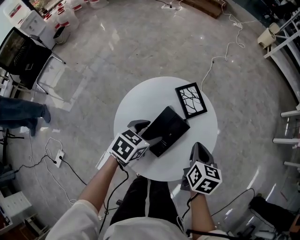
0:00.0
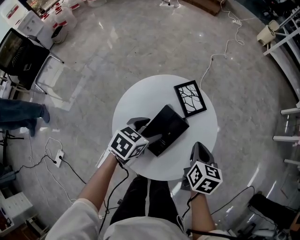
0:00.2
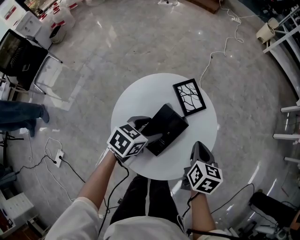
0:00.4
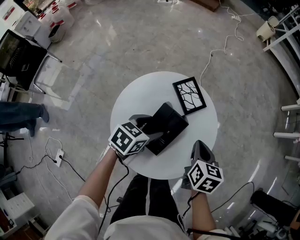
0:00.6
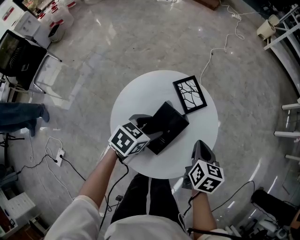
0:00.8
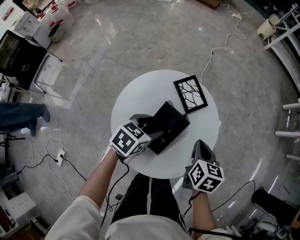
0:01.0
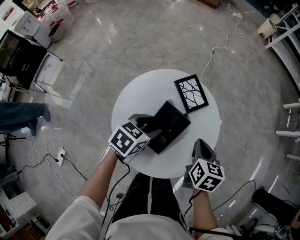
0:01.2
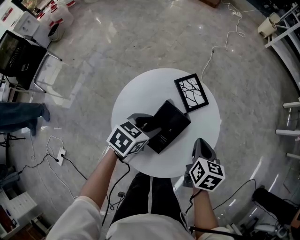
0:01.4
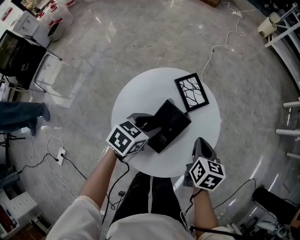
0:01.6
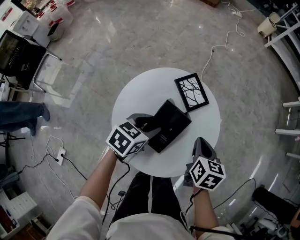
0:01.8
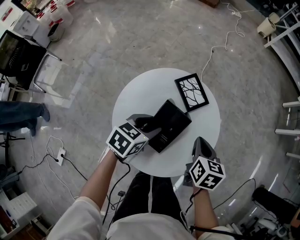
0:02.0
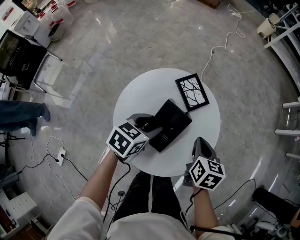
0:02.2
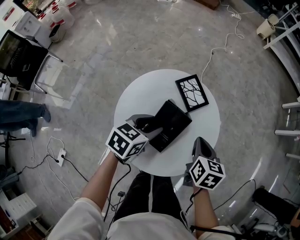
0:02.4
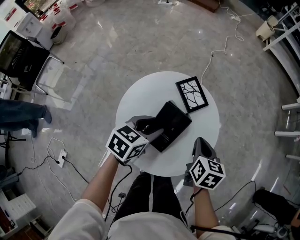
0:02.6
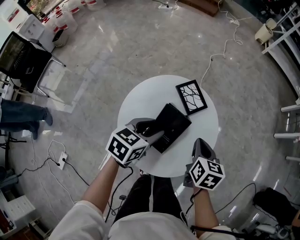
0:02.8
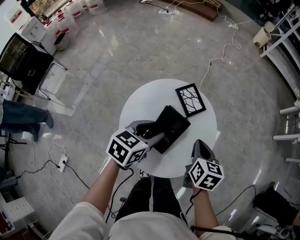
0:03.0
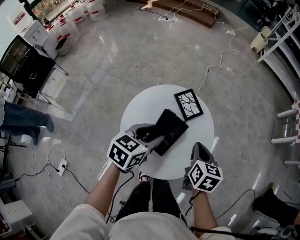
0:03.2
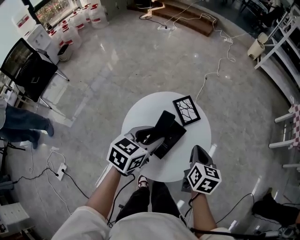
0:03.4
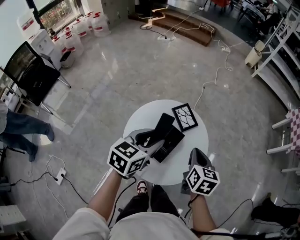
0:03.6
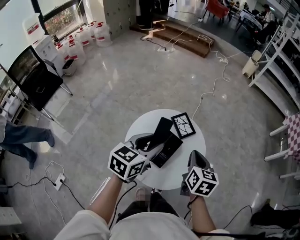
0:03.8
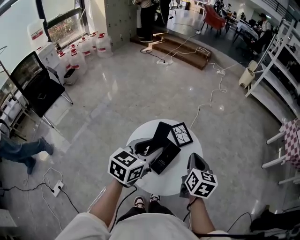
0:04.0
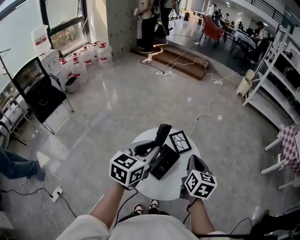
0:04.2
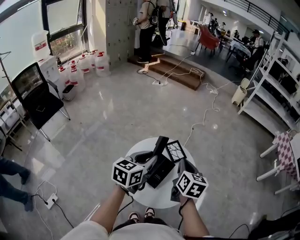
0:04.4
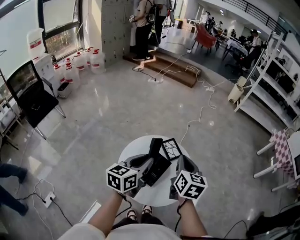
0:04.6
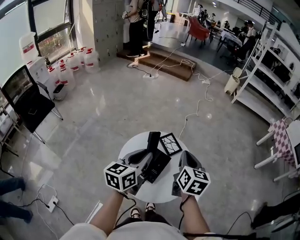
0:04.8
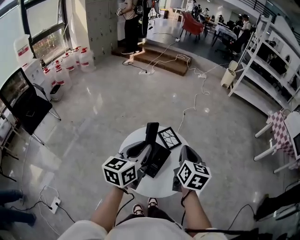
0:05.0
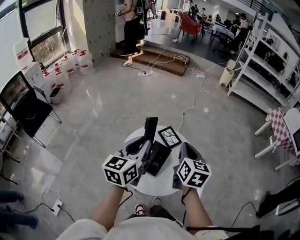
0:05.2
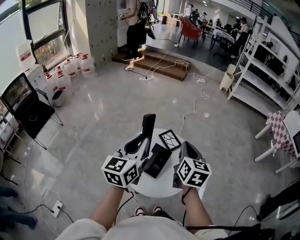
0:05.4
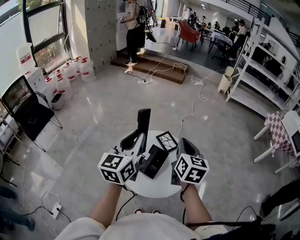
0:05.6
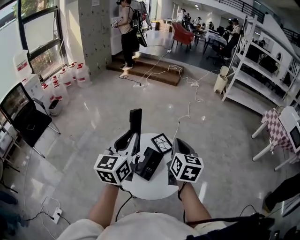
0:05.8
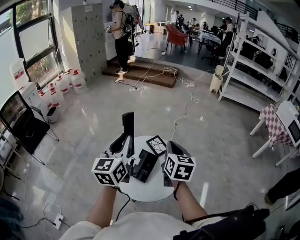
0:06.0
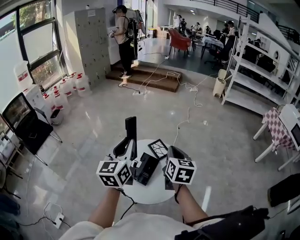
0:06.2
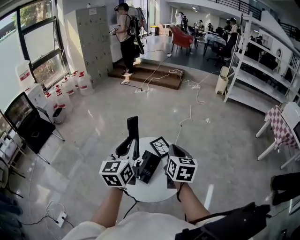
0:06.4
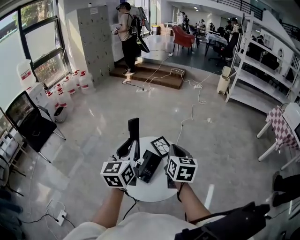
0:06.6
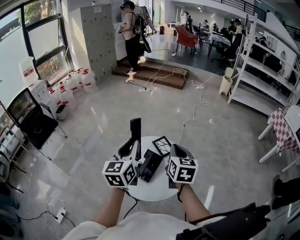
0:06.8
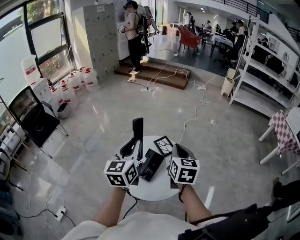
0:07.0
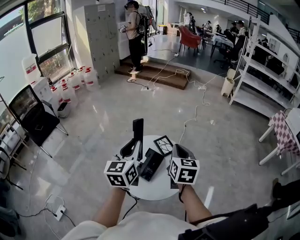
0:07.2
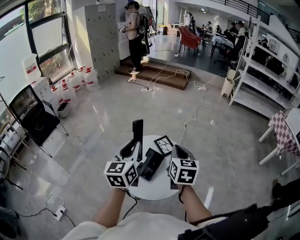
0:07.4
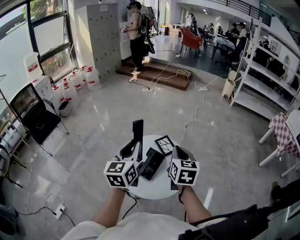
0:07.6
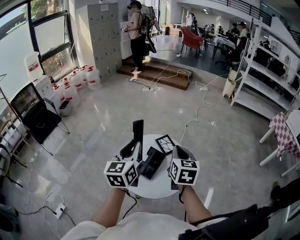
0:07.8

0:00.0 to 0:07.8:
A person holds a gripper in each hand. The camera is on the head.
0:00.0 to 0:01.6: The left gripper closes up.
0:01.6 to 0:03.2: The right gripper moves upward, approximately 5 cm; the left gripper travels upward by approximately 10 cm.
0:03.2 to 0:04.6: Both grippers travel together upward, about 15 cm. The right gripper rotates roughly 20 degrees; the left gripper turns by about 30 degrees, and closes.
0:04.6 to 0:06.2: The left gripper heads upward, covering about 10 cm, and changes its angle by about 30 degrees.
0:06.2 to 0:07.8: The grippers stay close to where they were, moving slightly.

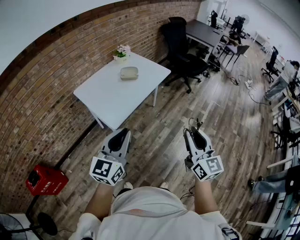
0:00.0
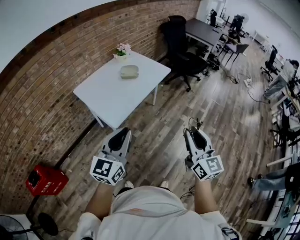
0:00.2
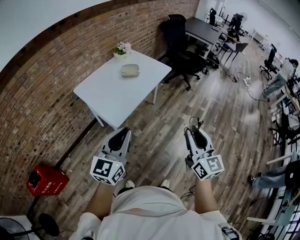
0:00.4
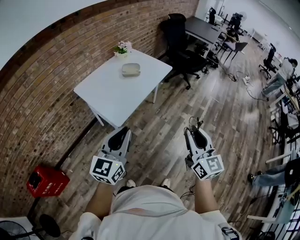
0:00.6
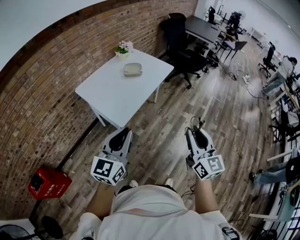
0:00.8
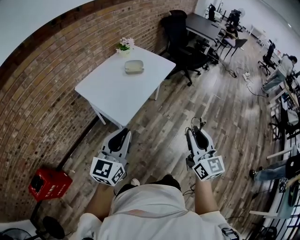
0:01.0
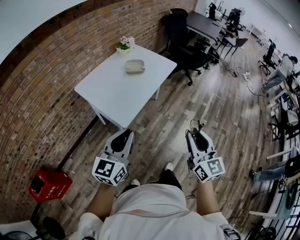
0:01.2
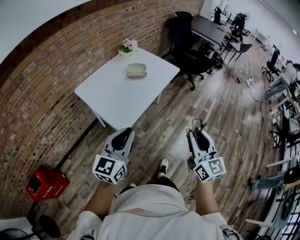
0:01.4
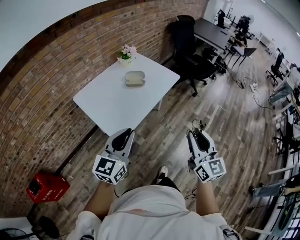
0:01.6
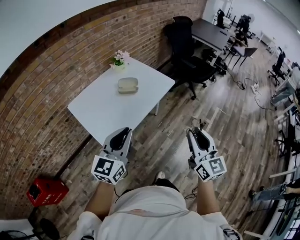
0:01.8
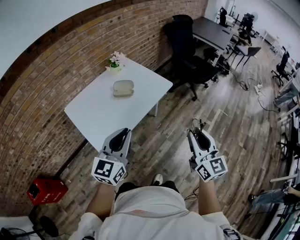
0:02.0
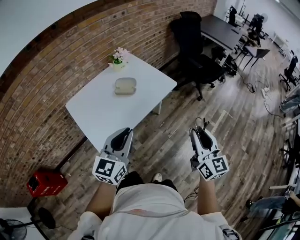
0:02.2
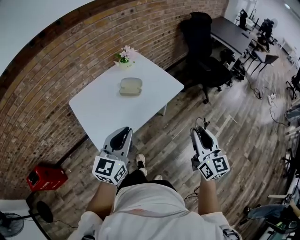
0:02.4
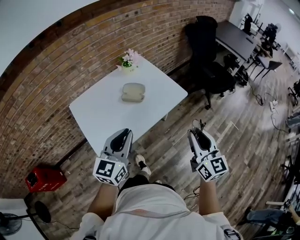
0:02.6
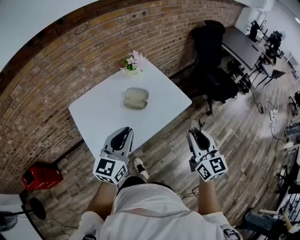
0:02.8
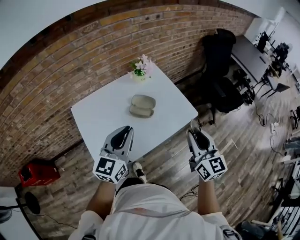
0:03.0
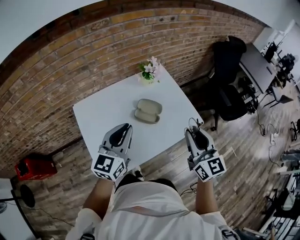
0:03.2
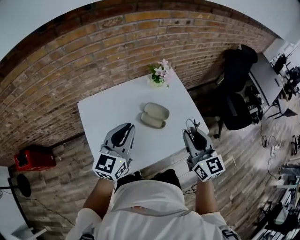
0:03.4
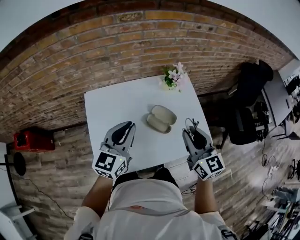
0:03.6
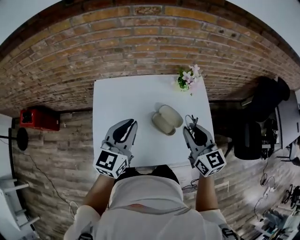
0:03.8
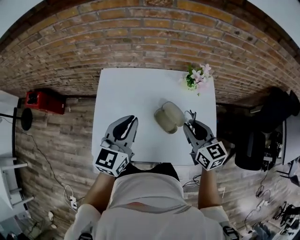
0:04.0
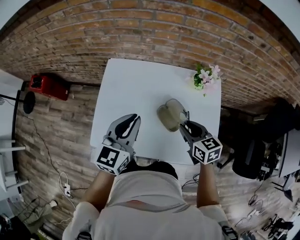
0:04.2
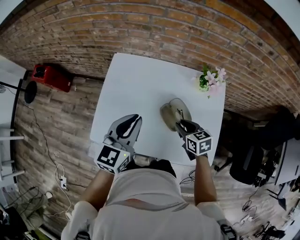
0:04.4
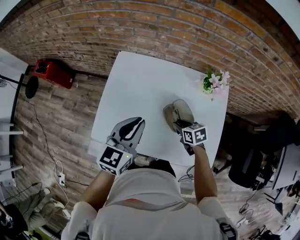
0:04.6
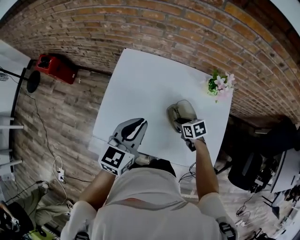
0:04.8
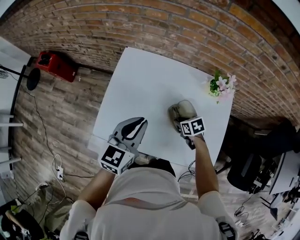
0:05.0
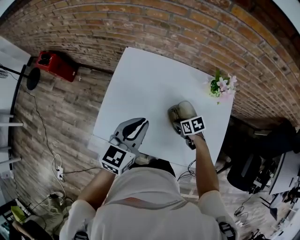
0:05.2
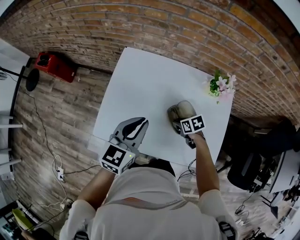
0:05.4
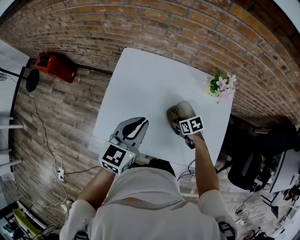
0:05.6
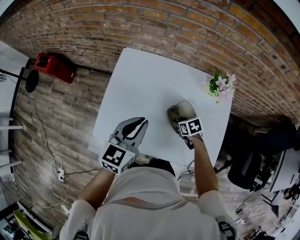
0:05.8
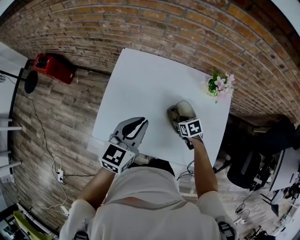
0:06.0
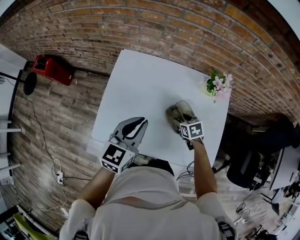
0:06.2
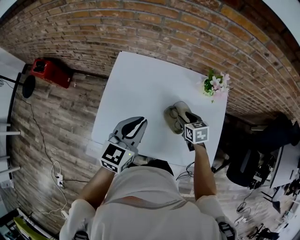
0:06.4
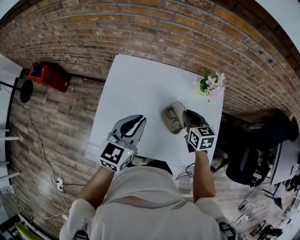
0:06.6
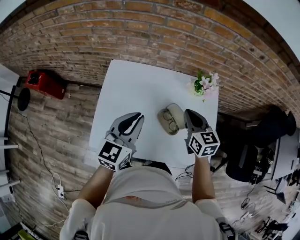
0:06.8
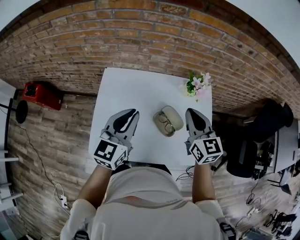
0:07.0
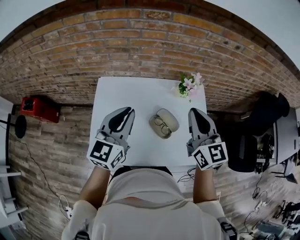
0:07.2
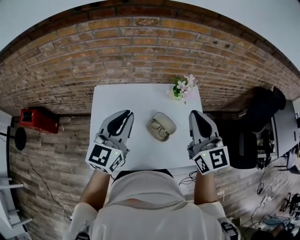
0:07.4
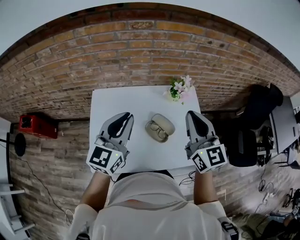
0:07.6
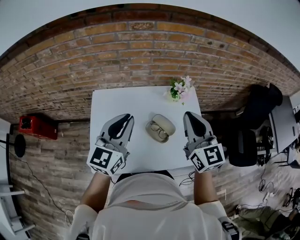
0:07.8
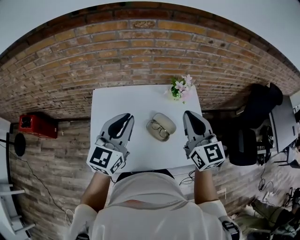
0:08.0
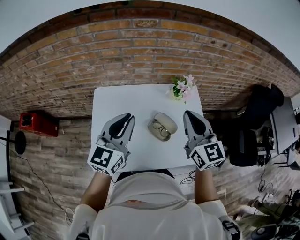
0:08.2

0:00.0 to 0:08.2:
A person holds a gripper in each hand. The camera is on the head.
0:00.0 to 0:01.6: The right gripper goes approximately 15 cm forward and to the left, while the left gripper travels forward by some 15 cm.
0:01.6 to 0:03.2: The two grippers go approximately 40 cm forward. The right gripper swivels some 30 degrees. Meanwhile the left gripper rotates roughly 20 degrees.
0:03.2 to 0:05.0: The left gripper heads downward, covering about 10 cm, and swivels approximately 40 degrees. The right gripper heads downward, covering some 35 cm, and tips its fingers downward by approximately 60 degrees.
0:05.0 to 0:06.6: The right gripper travels upward by roughly 15 cm, rotates about 40 degrees, and opens, then closes once more.
0:06.6 to 0:08.2: The left gripper moves upward, roughly 10 cm, while the right gripper heads upward, covering roughly 25 cm, and points its fingers some 30 degrees further upward.

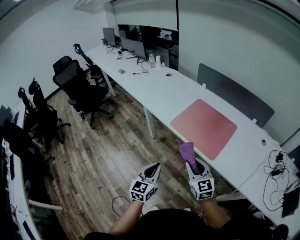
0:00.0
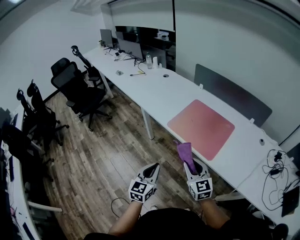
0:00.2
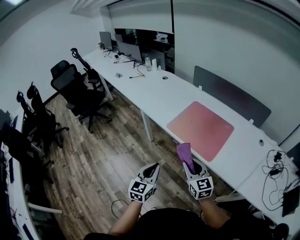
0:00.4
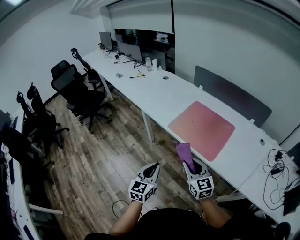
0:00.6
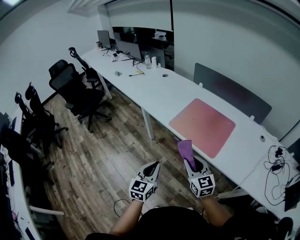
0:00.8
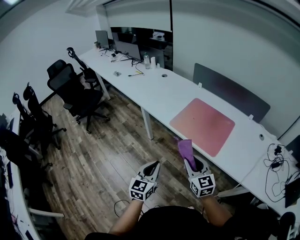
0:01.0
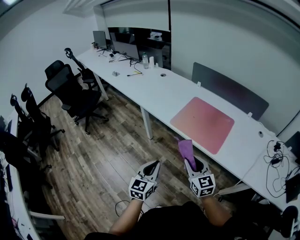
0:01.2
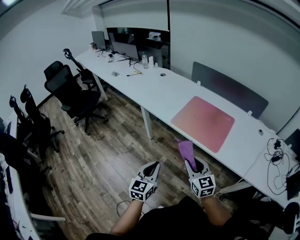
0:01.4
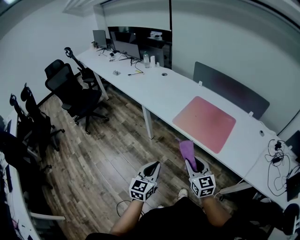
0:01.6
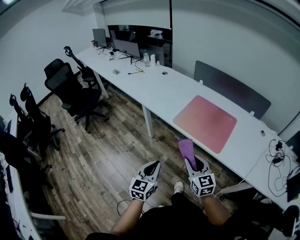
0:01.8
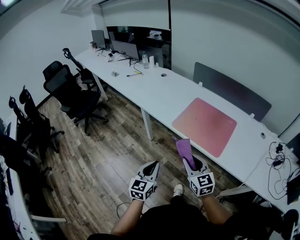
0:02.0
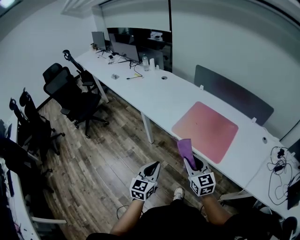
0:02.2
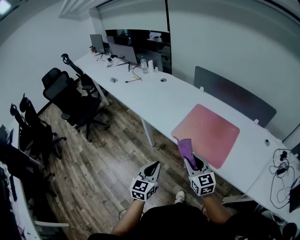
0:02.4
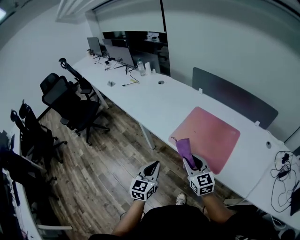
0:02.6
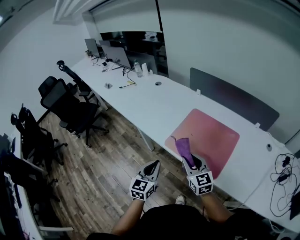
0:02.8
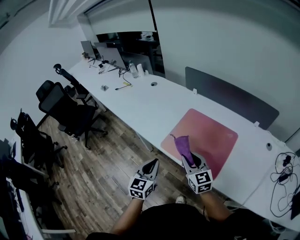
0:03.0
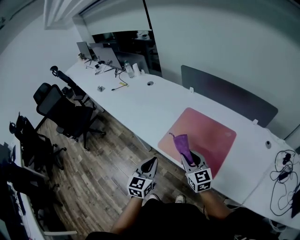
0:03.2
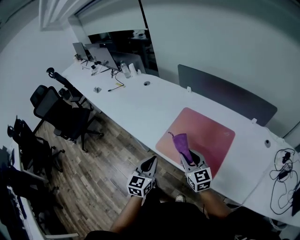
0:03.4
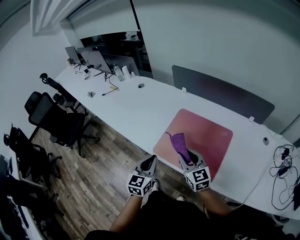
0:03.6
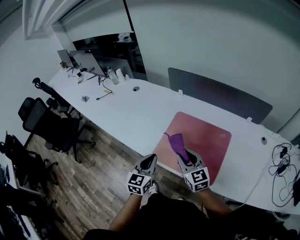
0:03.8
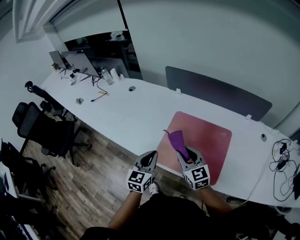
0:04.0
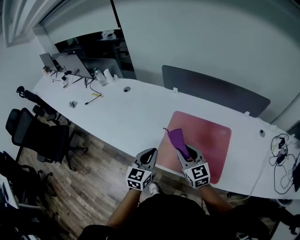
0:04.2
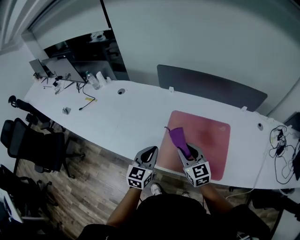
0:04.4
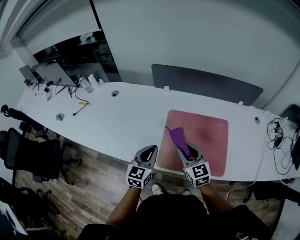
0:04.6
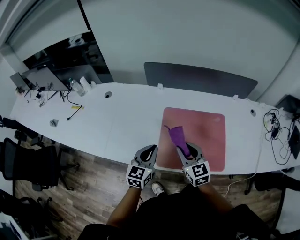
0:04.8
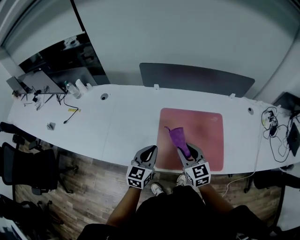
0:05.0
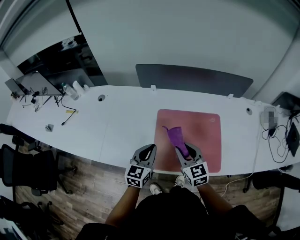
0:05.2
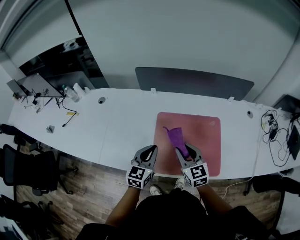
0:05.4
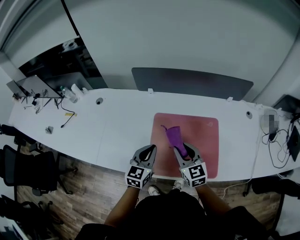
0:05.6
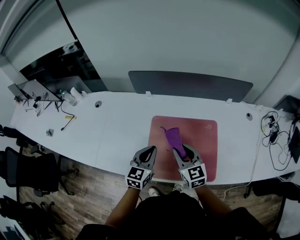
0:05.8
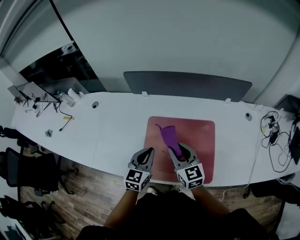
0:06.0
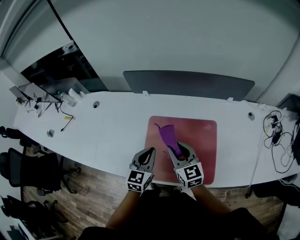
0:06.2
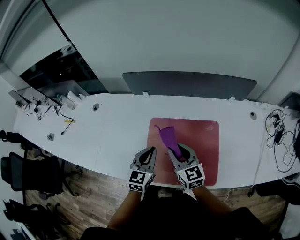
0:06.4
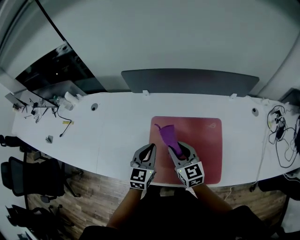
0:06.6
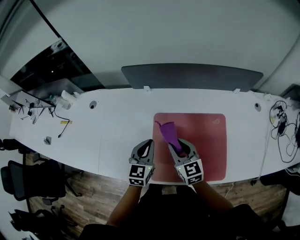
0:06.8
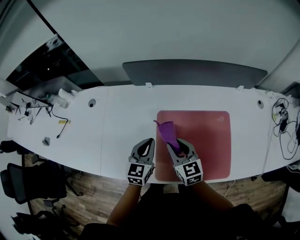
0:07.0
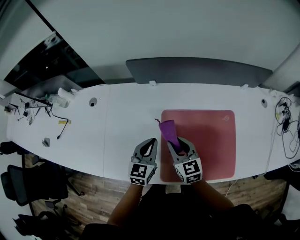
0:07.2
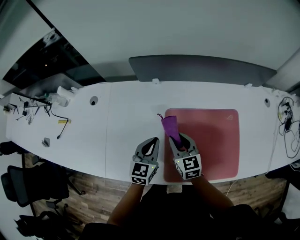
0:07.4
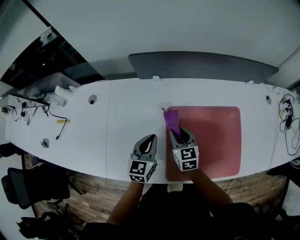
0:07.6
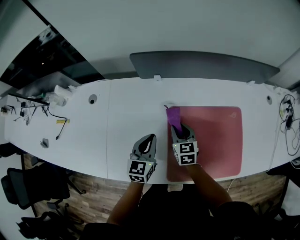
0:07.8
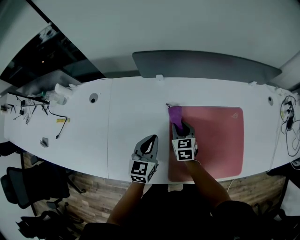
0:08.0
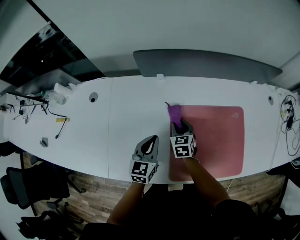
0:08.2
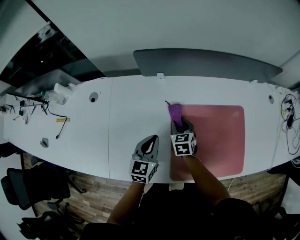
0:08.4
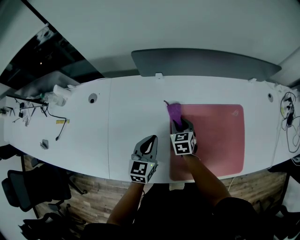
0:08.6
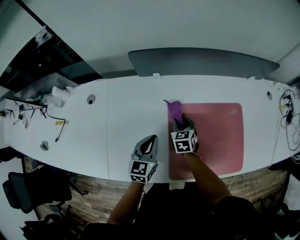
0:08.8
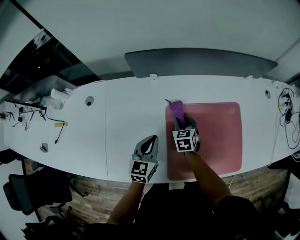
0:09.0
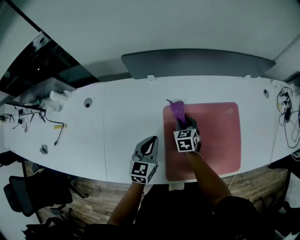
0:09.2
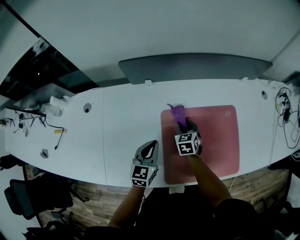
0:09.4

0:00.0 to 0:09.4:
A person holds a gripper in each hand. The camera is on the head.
0:00.0 to 0:01.6: The two grippers go about 5 cm to the left.
0:01.6 to 0:03.2: The right gripper moves forward, about 25 cm. The left gripper heads forward and to the right, covering about 25 cm.
0:03.2 to 0:04.8: The left gripper changes place by roughly 20 cm, and rotates approximately 30 degrees, while the right gripper changes place by some 15 cm, and changes its angle by roughly 30 degrees.
0:04.8 to 0:06.2: The left gripper heads to the right and forward, covering some 10 cm. The right gripper shifts approximately 10 cm forward and to the right.
0:06.2 to 0:07.8: The left gripper goes roughly 20 cm to the left, forward and downward, while the right gripper moves downward, forward and to the left, approximately 25 cm, and turns by some 30 degrees.
0:07.8 to 0:09.4: The right gripper is displaced to the right by approximately 5 cm.
